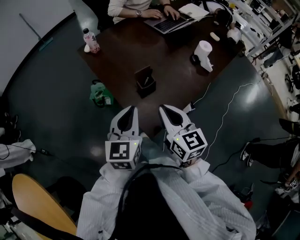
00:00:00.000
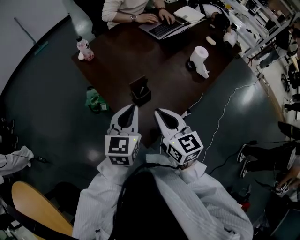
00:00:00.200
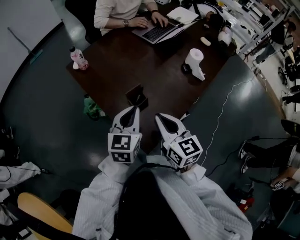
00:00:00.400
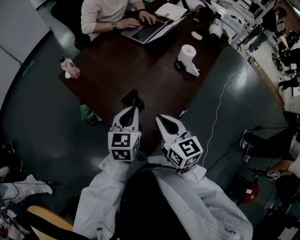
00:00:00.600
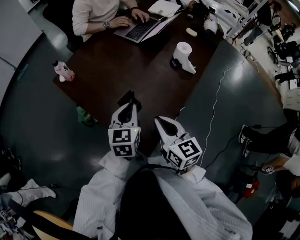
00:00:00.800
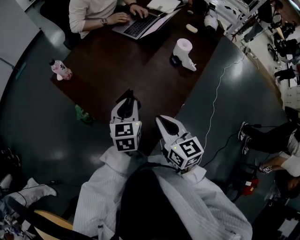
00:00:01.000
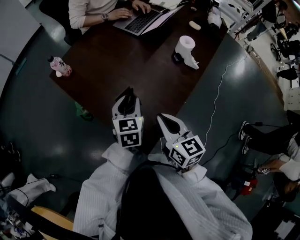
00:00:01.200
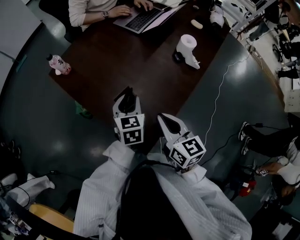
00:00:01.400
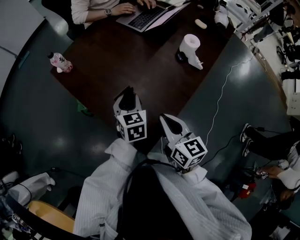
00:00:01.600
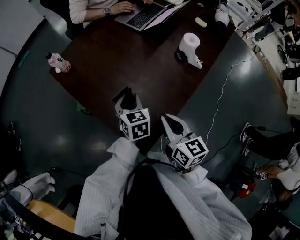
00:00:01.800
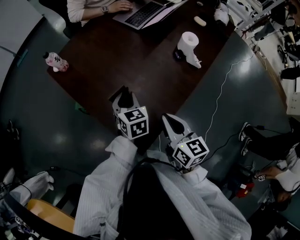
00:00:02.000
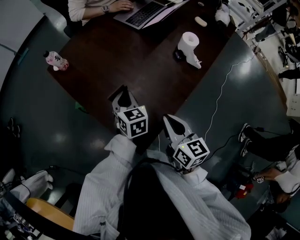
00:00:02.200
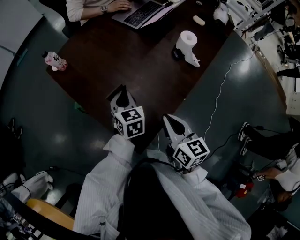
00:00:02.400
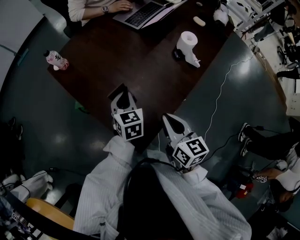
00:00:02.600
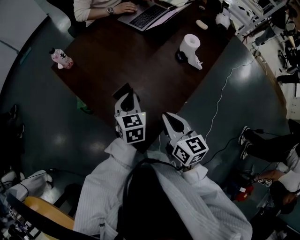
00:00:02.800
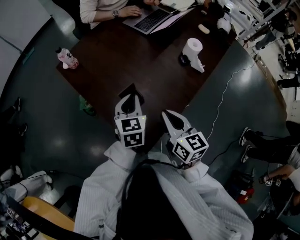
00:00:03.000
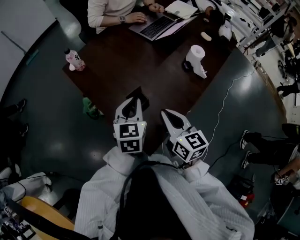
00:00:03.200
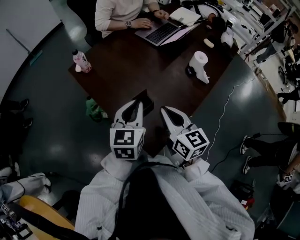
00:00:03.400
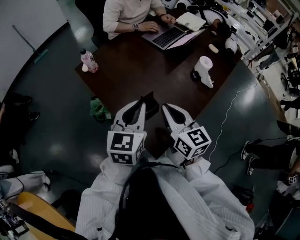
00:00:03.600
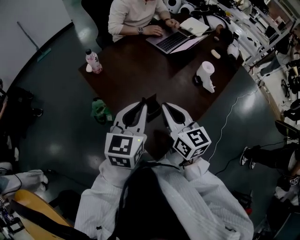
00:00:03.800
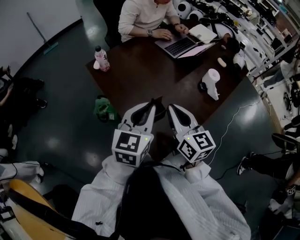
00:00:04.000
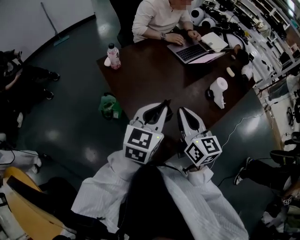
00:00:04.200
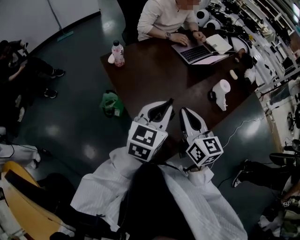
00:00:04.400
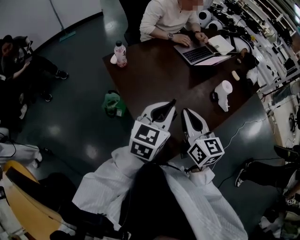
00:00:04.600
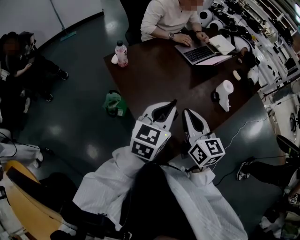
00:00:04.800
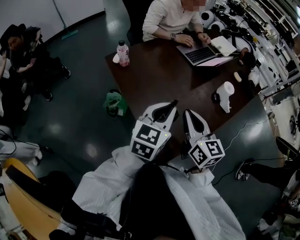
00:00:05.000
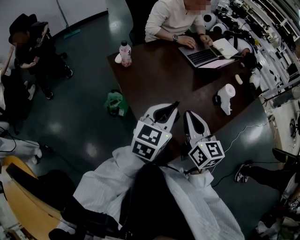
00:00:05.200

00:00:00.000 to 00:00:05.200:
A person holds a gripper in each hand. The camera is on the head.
00:00:00.000 to 00:00:01.800: The left gripper is displaced forward, downward and to the right by approximately 25 cm, turns by roughly 30 degrees, and opens its fingers; the right gripper is displaced to the right, forward and downward by some 15 cm.
00:00:01.800 to 00:00:03.400: The left gripper heads upward and to the left, covering approximately 15 cm, turns by about 20 degrees, and closes its fingers, while the right gripper moves to the left and upward, some 10 cm.
00:00:03.400 to 00:00:05.200: The left gripper shifts by about 5 cm. Meanwhile the right gripper ends up roughly 5 cm from where it was.

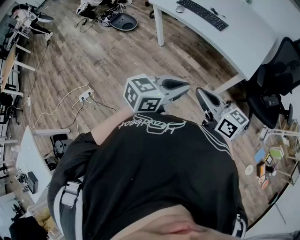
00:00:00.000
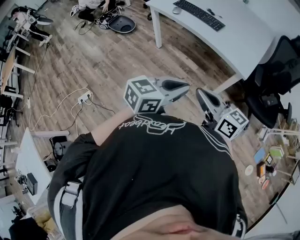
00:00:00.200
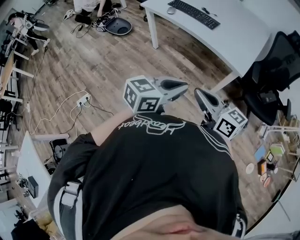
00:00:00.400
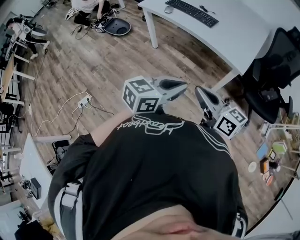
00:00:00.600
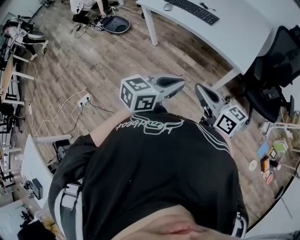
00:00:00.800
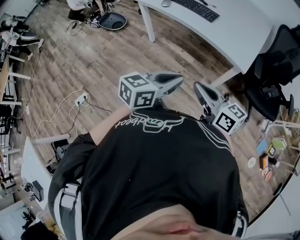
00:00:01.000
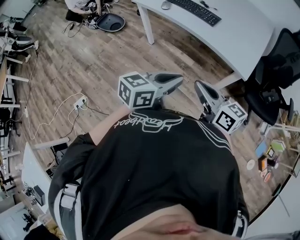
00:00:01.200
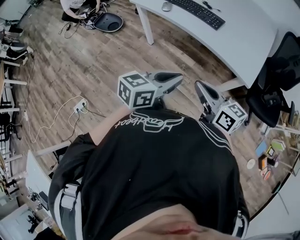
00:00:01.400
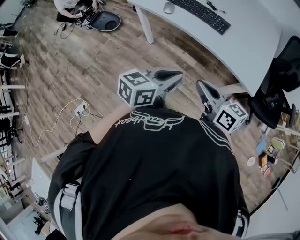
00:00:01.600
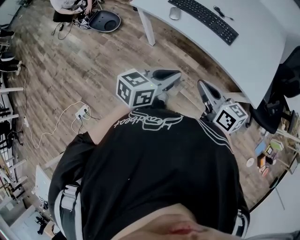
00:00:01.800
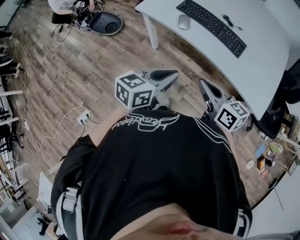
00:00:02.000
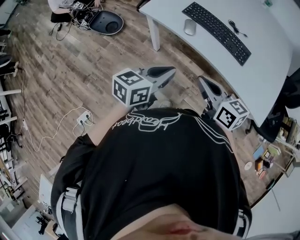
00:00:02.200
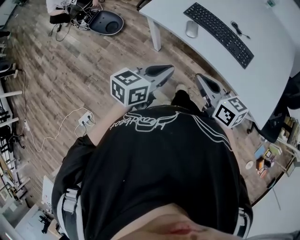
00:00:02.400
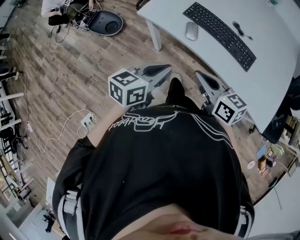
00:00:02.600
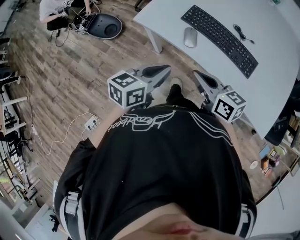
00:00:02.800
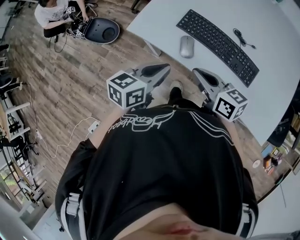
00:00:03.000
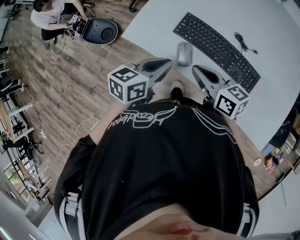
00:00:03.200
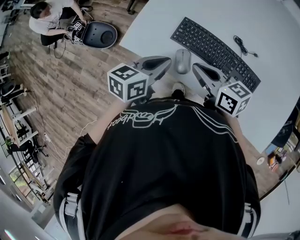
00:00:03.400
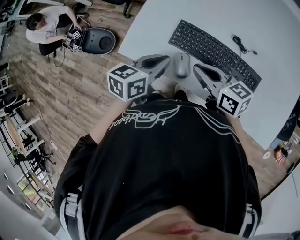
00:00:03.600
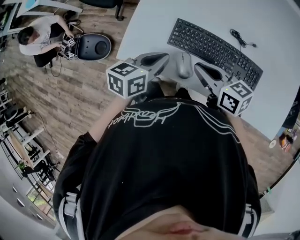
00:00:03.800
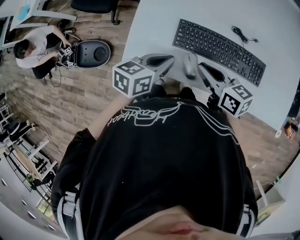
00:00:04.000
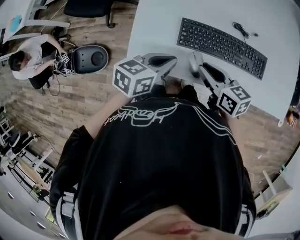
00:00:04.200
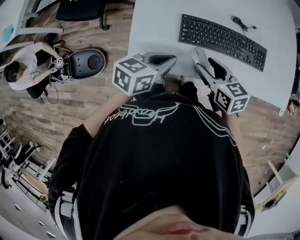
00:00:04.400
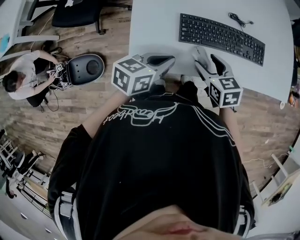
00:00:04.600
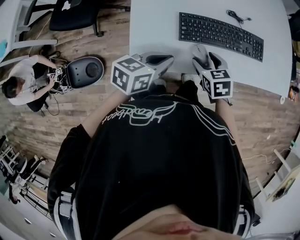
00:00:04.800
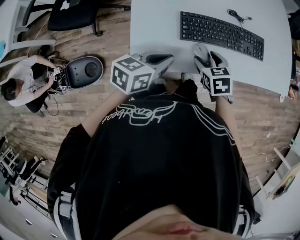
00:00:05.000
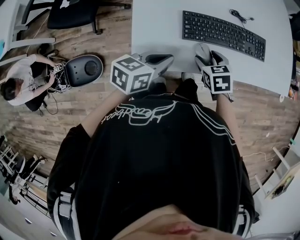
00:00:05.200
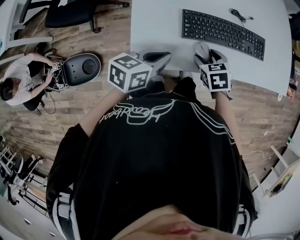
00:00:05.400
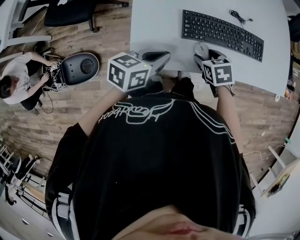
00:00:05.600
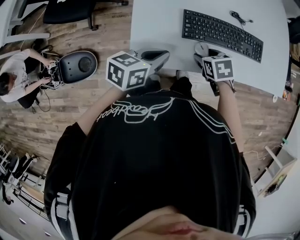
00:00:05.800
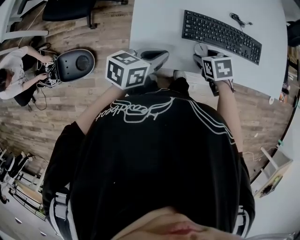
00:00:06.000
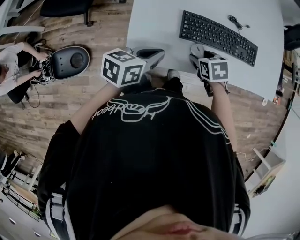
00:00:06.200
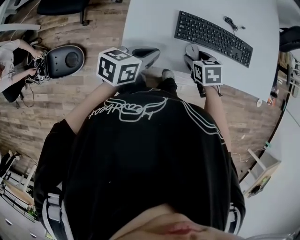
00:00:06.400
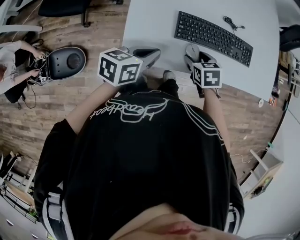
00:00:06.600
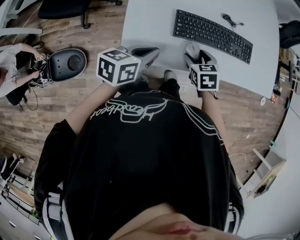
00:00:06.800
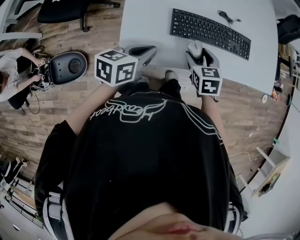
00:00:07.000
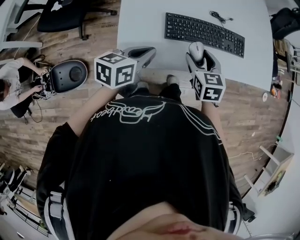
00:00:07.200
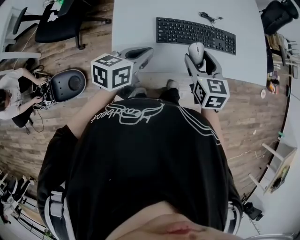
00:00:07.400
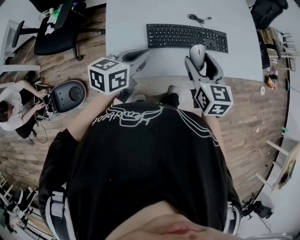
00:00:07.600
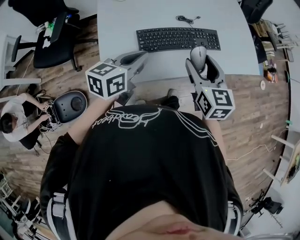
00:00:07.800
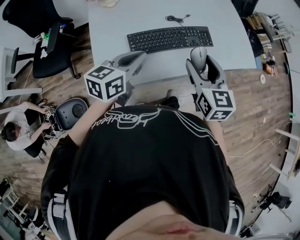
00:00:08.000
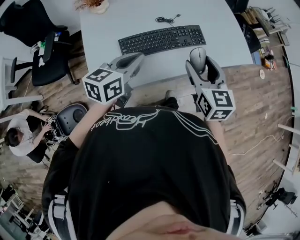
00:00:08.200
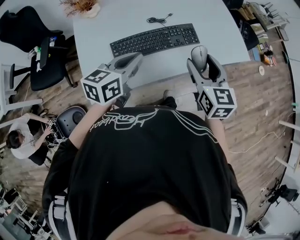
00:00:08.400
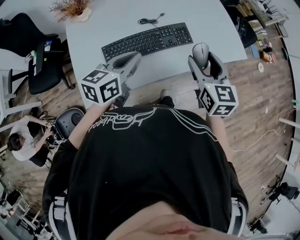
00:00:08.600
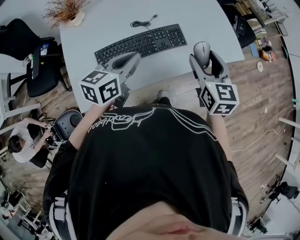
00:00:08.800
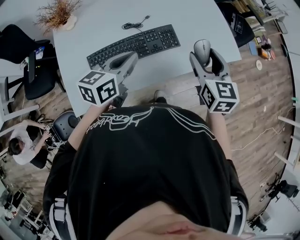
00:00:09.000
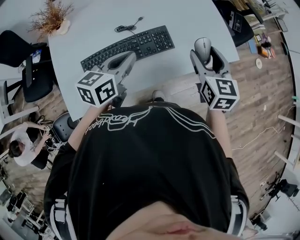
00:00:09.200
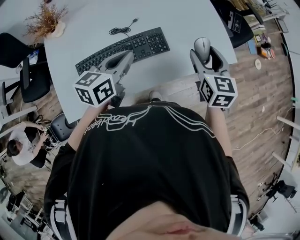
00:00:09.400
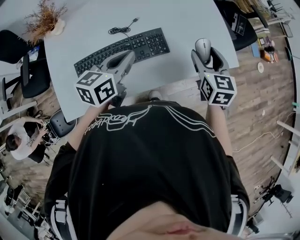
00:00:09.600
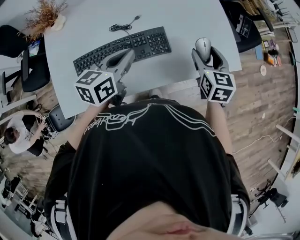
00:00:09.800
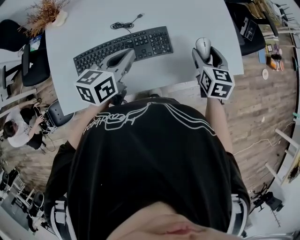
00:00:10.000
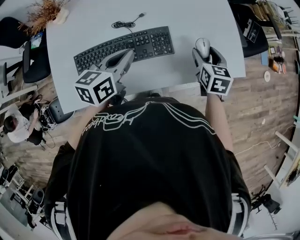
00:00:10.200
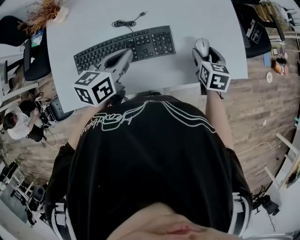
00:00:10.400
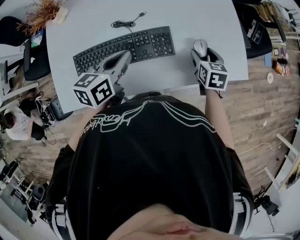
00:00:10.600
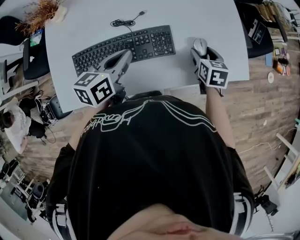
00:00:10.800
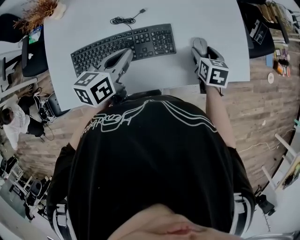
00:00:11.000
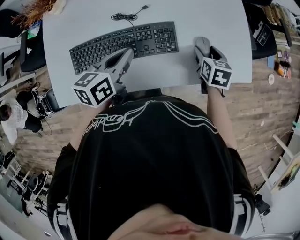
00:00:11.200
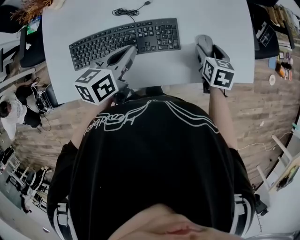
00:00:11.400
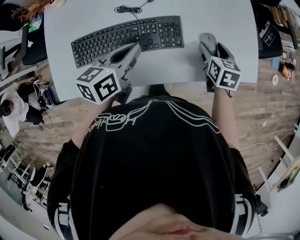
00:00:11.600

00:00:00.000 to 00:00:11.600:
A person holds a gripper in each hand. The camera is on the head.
00:00:00.000 to 00:00:01.400: The two grippers go roughly 15 cm forward.
00:00:01.400 to 00:00:02.800: Both grippers are carried forward and to the left, roughly 40 cm.
00:00:02.800 to 00:00:04.400: The left gripper shifts by about 20 cm, and changes its angle by approximately 40 degrees. The right gripper moves some 20 cm, turns by roughly 40 degrees, and opens its fingers.
00:00:04.400 to 00:00:05.800: The right gripper heads downward, covering roughly 10 cm, and points its fingers some 30 degrees further downward.
00:00:05.800 to 00:00:07.200: The right gripper goes roughly 10 cm upward, and changes its angle by approximately 30 degrees.
00:00:07.200 to 00:00:08.800: The left gripper is displaced to the right, forward and upward by about 25 cm. The right gripper goes some 30 cm to the right and upward, and rotates some 30 degrees.
00:00:08.800 to 00:00:10.200: The left gripper shifts roughly 15 cm forward, downward and to the right, while the right gripper is displaced forward, downward and to the right by roughly 25 cm.
00:00:10.200 to 00:00:11.600: The right gripper heads downward, covering roughly 5 cm.

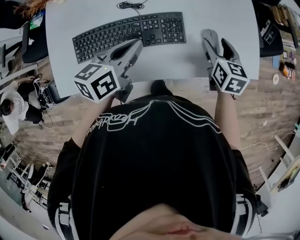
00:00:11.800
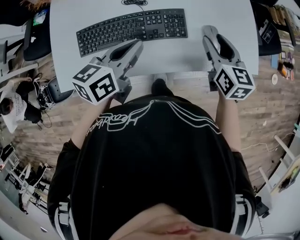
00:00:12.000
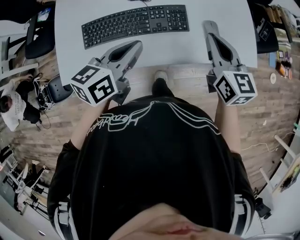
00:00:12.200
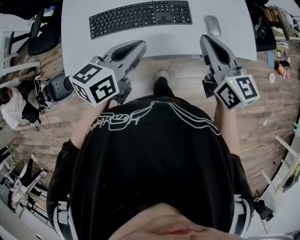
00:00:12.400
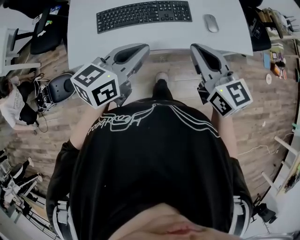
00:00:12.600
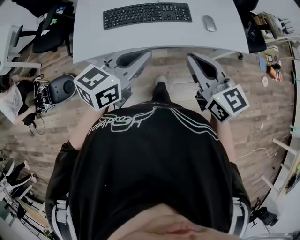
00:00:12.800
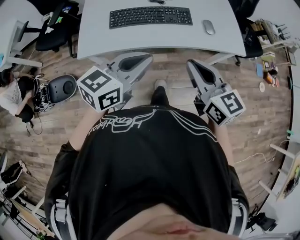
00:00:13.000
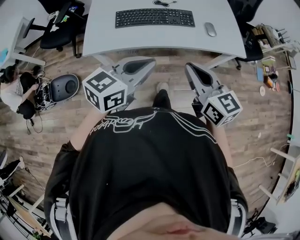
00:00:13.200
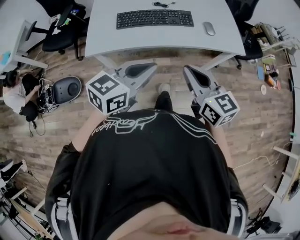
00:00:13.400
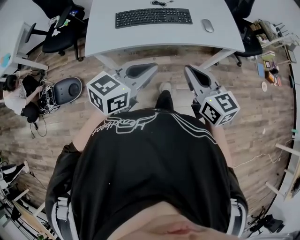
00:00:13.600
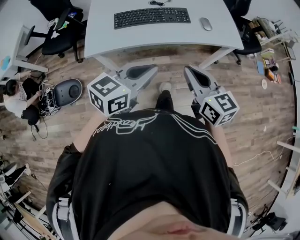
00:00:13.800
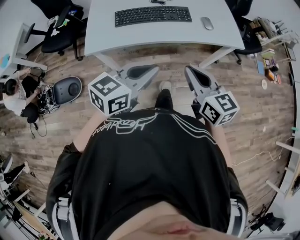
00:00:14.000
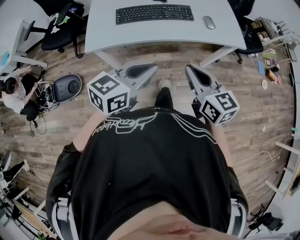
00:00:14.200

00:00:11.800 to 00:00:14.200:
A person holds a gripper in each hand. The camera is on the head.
00:00:11.800 to 00:00:13.000: Both grippers travel together backward and upward, some 40 cm. The left gripper turns by some 30 degrees; the right gripper rotates about 30 degrees, and closes up.
00:00:13.000 to 00:00:14.200: Both grippers travel together backward, approximately 5 cm.

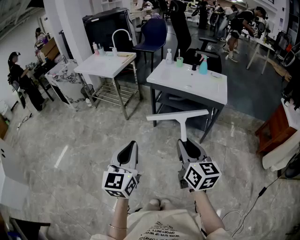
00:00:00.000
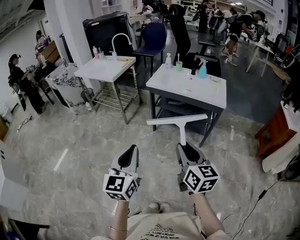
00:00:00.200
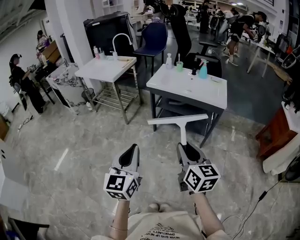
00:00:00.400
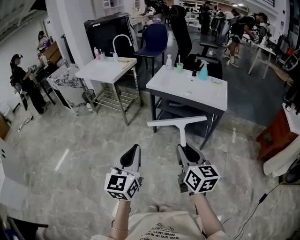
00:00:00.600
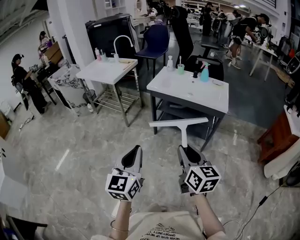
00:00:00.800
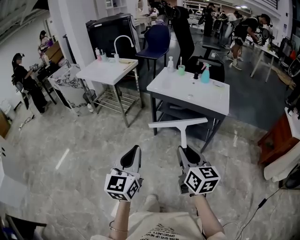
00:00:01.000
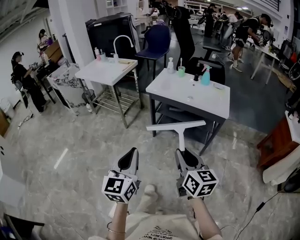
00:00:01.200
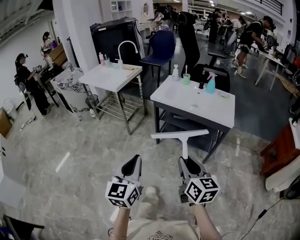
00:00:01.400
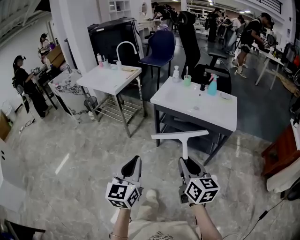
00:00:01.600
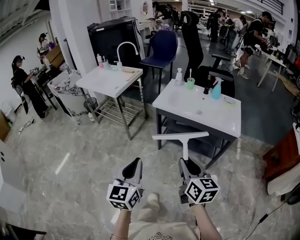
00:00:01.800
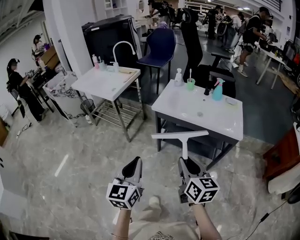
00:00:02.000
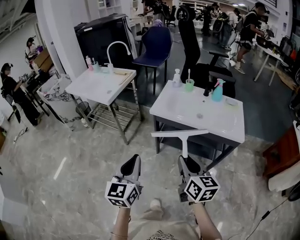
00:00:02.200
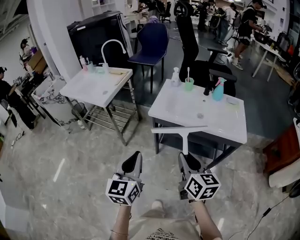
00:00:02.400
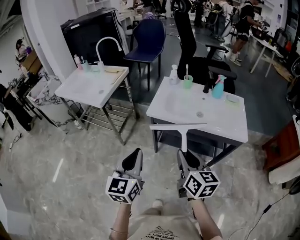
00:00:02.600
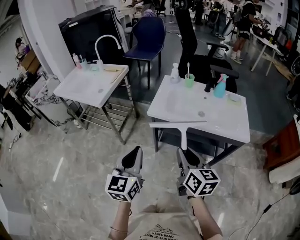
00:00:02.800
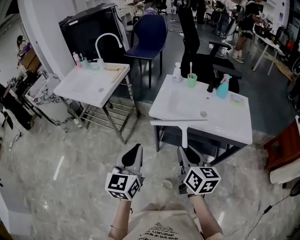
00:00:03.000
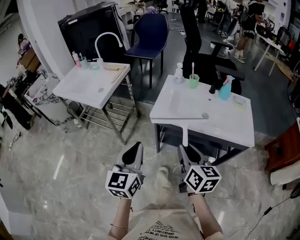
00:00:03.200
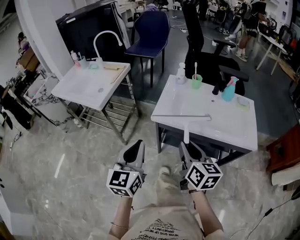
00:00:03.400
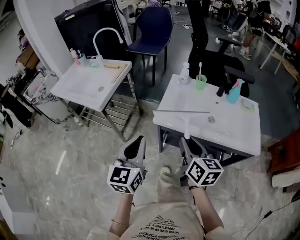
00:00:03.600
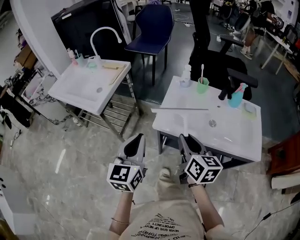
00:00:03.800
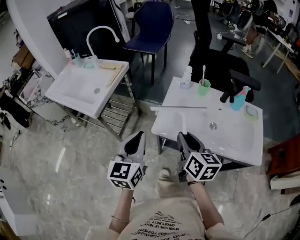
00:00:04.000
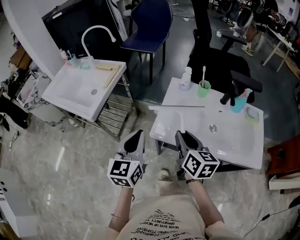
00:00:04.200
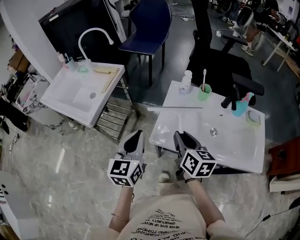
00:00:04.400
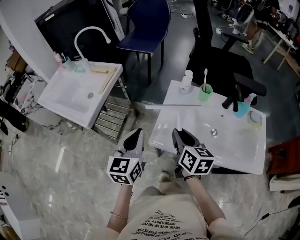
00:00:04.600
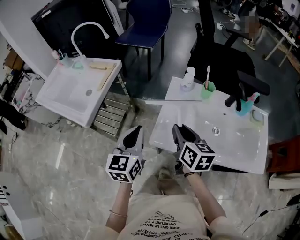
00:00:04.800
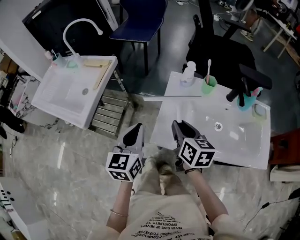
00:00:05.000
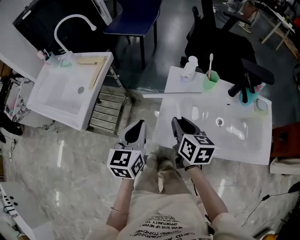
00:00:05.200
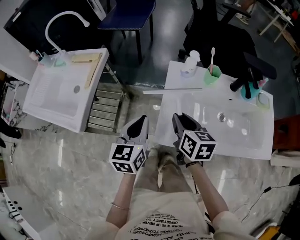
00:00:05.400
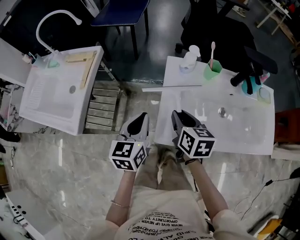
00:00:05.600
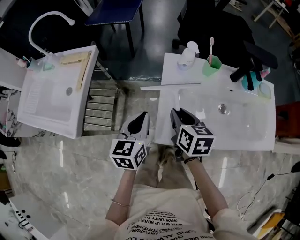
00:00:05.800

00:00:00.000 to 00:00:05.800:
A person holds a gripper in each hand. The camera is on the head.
00:00:00.000 to 00:00:01.400: Both grippers travel together forward, some 5 cm.
00:00:01.400 to 00:00:02.800: Both grippers move forward, about 30 cm.
00:00:02.800 to 00:00:04.400: Both grippers move forward, approximately 30 cm.
00:00:04.400 to 00:00:05.800: The grippers both shift forward and downward by approximately 15 cm. The left gripper changes its angle by some 20 degrees.
